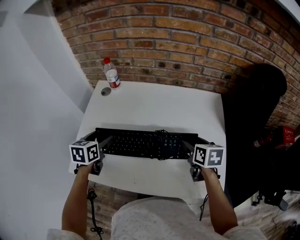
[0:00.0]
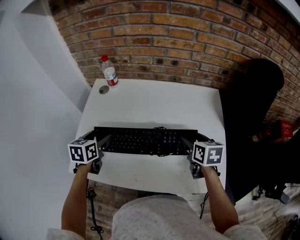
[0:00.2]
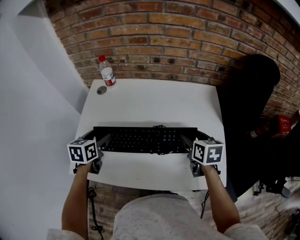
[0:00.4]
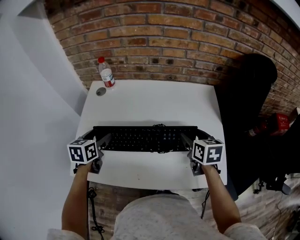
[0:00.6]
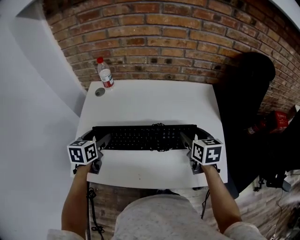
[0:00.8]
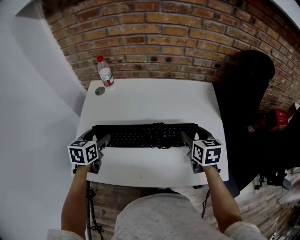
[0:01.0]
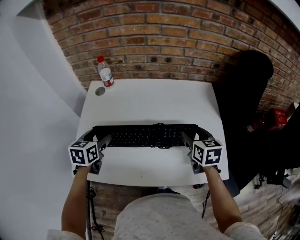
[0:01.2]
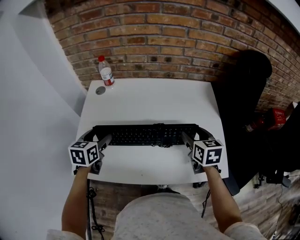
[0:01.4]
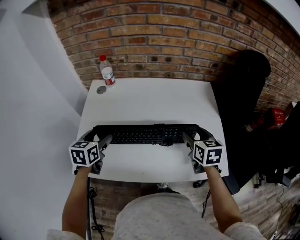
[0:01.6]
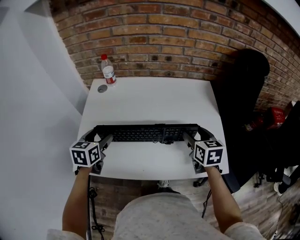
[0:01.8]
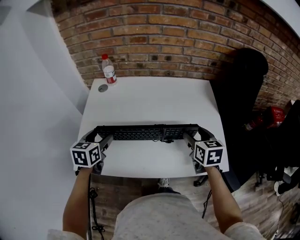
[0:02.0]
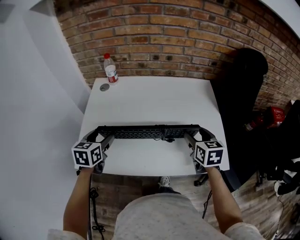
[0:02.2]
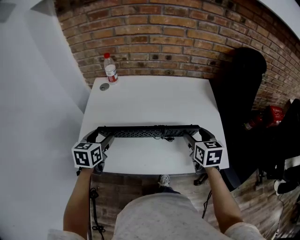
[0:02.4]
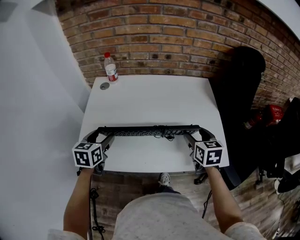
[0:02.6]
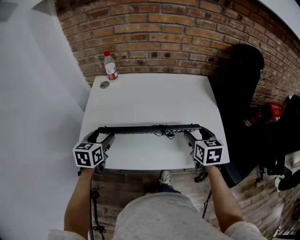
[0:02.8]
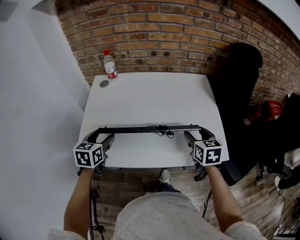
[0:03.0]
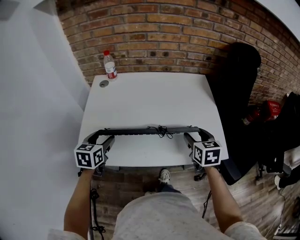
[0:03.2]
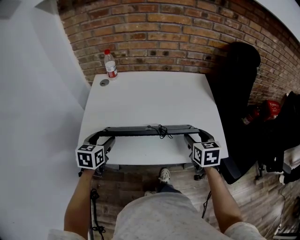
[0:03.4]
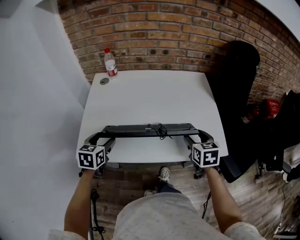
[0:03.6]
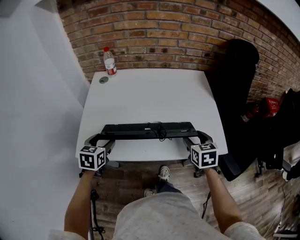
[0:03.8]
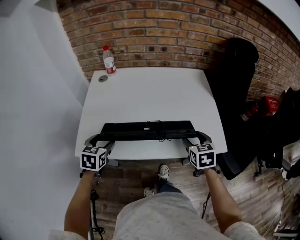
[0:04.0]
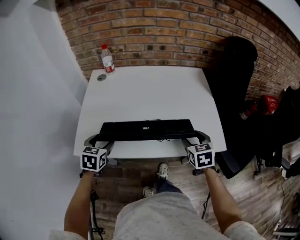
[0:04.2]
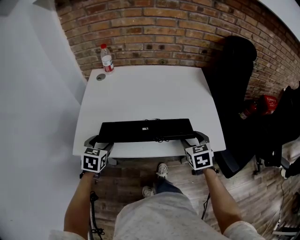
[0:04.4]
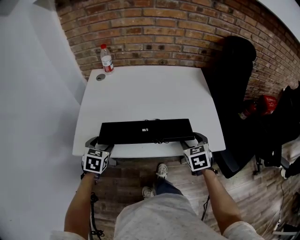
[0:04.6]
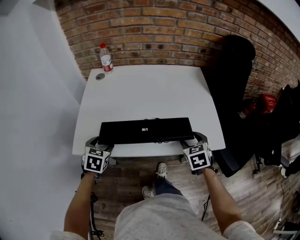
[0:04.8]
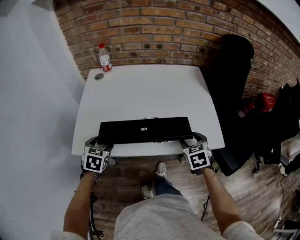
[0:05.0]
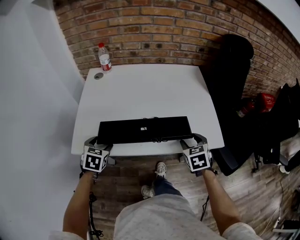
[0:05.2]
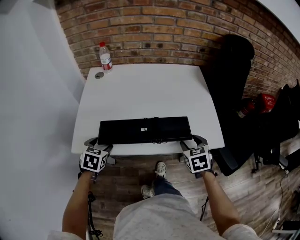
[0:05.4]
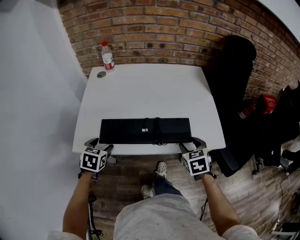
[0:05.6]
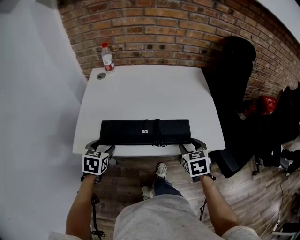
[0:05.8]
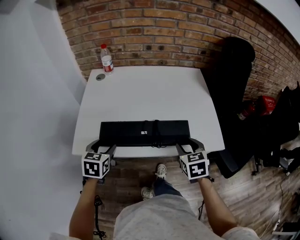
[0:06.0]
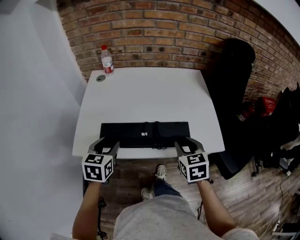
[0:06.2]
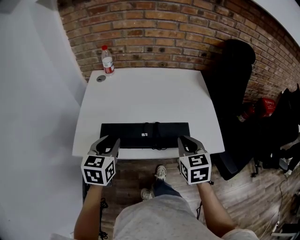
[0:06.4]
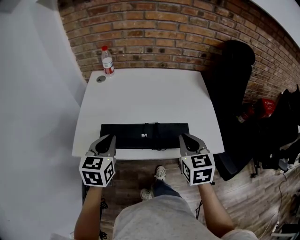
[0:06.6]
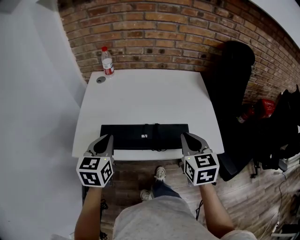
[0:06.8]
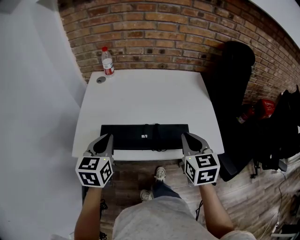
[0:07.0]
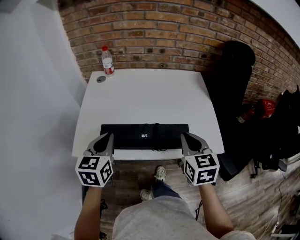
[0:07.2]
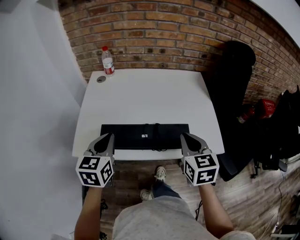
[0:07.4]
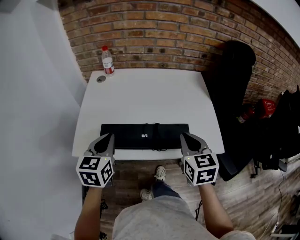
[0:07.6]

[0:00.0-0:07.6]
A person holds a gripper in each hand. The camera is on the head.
0:00.0 to 0:01.6: The right gripper shifts about 5 cm backward.
0:01.6 to 0:03.0: The grippers both shift backward by approximately 10 cm.
0:03.0 to 0:04.6: Both grippers move backward and downward, roughly 10 cm. The right gripper rotates some 20 degrees.
0:04.6 to 0:06.0: The right gripper moves roughly 5 cm.
0:06.0 to 0:07.6: The two grippers go roughly 10 cm upward. The left gripper closes its fingers. Meanwhile the right gripper closes up.

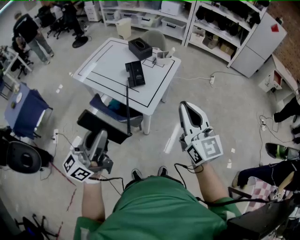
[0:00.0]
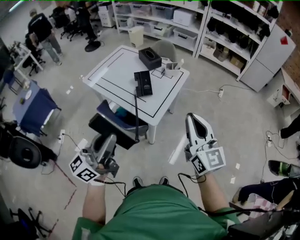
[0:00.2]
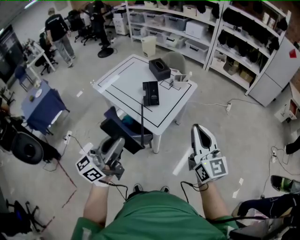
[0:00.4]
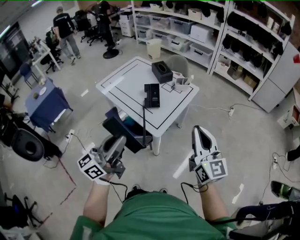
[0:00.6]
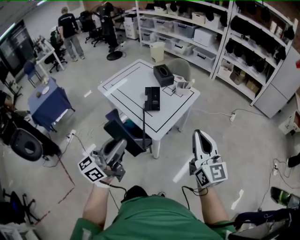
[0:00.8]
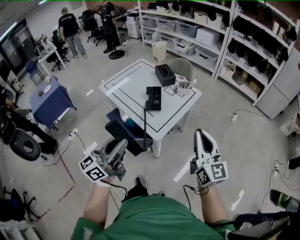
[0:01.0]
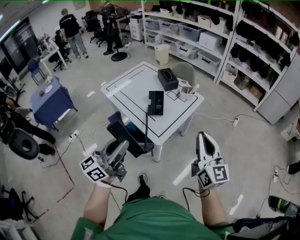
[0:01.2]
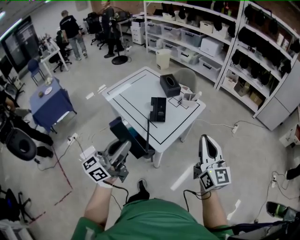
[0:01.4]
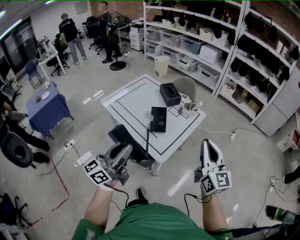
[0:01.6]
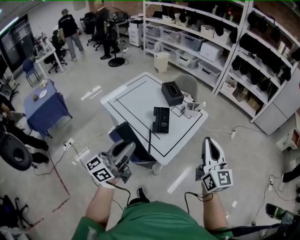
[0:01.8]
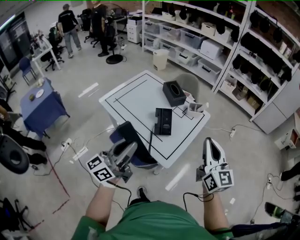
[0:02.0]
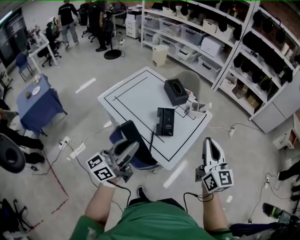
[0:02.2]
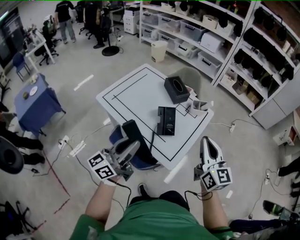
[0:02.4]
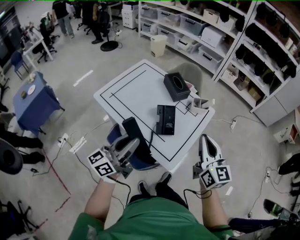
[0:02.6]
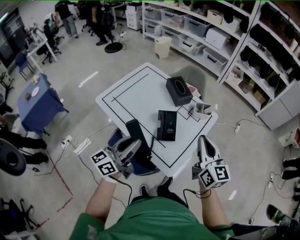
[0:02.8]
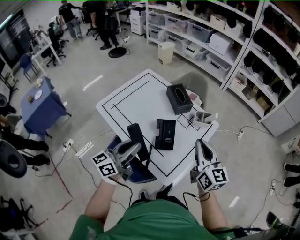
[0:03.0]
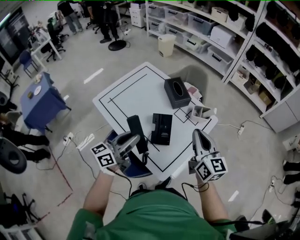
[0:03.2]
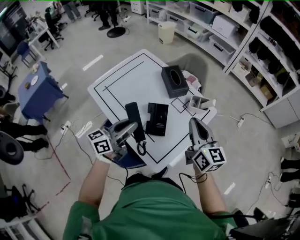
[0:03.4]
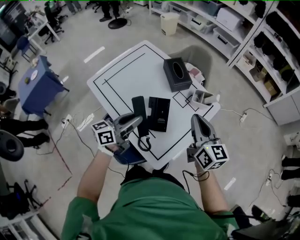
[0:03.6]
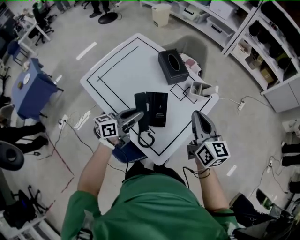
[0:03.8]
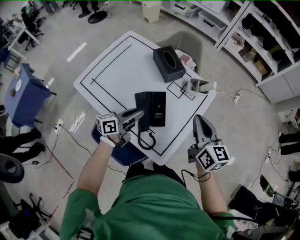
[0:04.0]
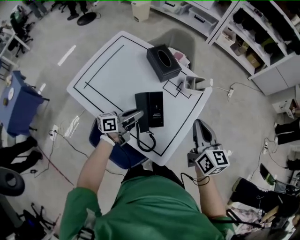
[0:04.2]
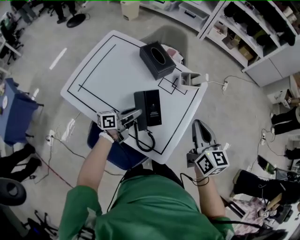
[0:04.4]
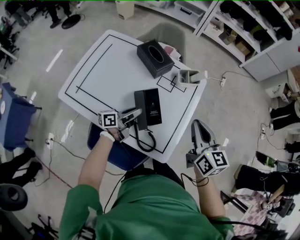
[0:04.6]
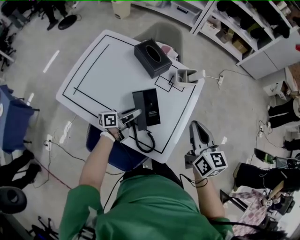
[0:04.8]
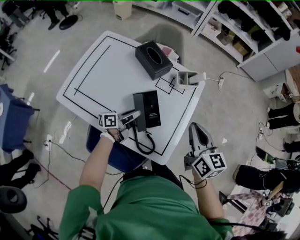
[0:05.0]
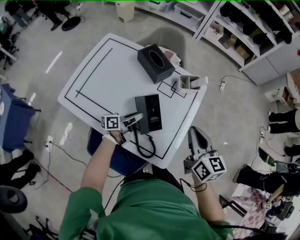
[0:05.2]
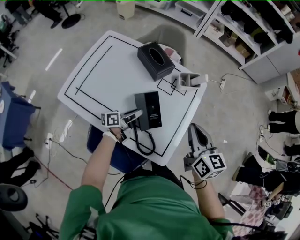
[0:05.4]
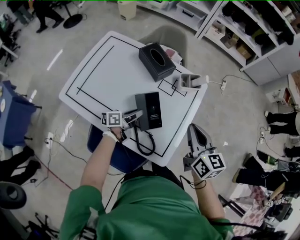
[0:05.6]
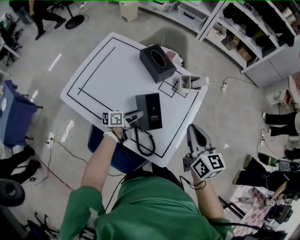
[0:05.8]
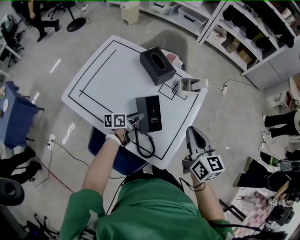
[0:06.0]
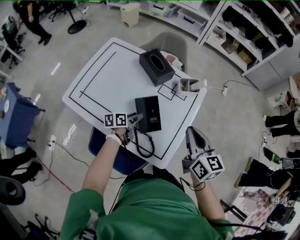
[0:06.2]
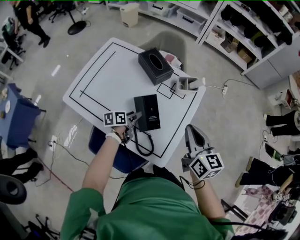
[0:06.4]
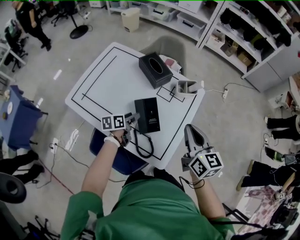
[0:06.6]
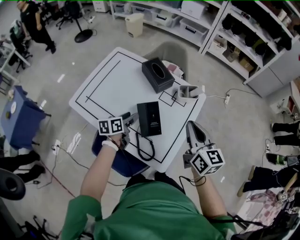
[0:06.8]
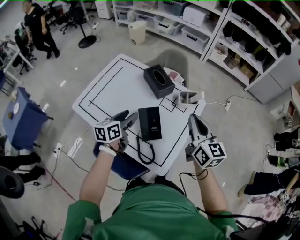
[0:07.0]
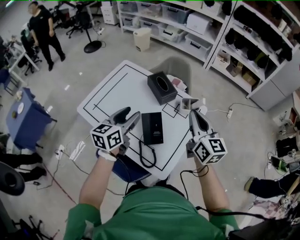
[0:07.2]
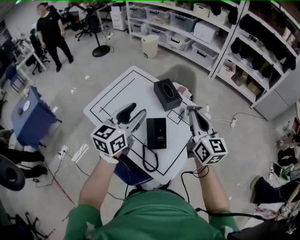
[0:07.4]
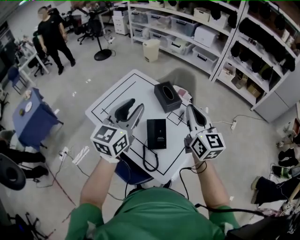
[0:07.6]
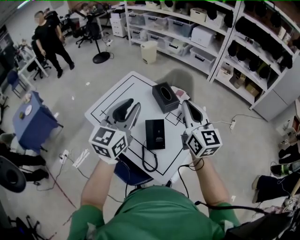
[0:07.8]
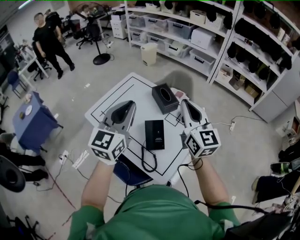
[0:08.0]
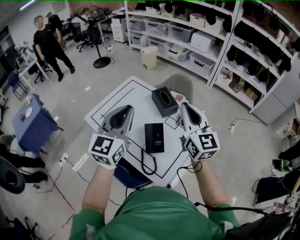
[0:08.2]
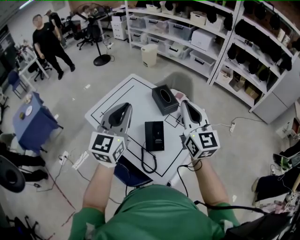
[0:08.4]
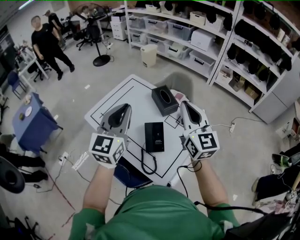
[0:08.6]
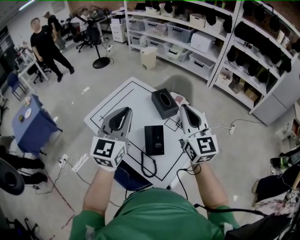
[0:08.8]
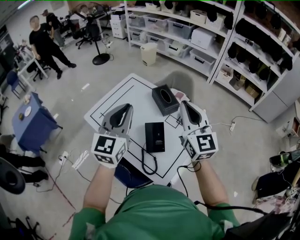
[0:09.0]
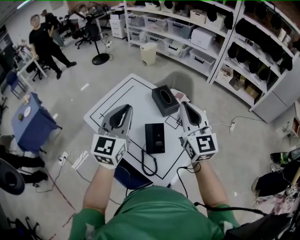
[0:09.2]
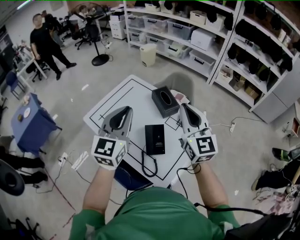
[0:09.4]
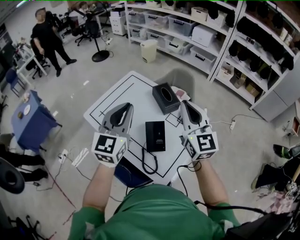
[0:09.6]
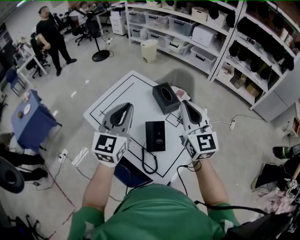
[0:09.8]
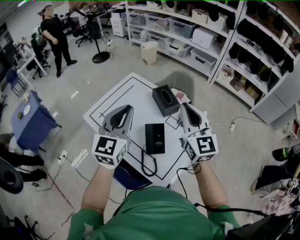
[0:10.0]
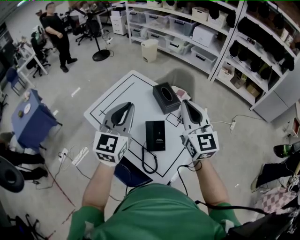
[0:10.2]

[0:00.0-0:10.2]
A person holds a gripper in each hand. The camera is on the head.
0:00.0 to 0:01.4: The grippers both shift forward and to the right by about 10 cm.
0:01.4 to 0:03.0: The left gripper is displaced forward by approximately 25 cm. Meanwhile the right gripper travels forward and to the left by some 30 cm.
0:03.0 to 0:04.4: The right gripper moves downward, some 10 cm. The left gripper heads downward and forward, covering roughly 25 cm, and rotates approximately 40 degrees.
0:04.4 to 0:05.8: The grippers move only a little.
0:05.8 to 0:07.2: The right gripper moves upward and forward, roughly 10 cm. Meanwhile the left gripper is displaced upward by approximately 25 cm, rotates approximately 50 degrees, and opens its fingers.
0:07.2 to 0:08.8: The right gripper shifts some 10 cm upward and to the left. Meanwhile the left gripper travels upward by about 15 cm, turns by about 40 degrees, and closes its fingers.
0:08.8 to 0:10.2: The grippers stay close to where they were, moving slightly.

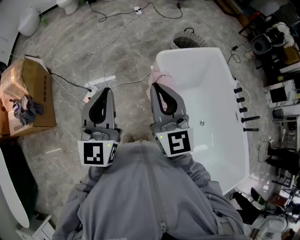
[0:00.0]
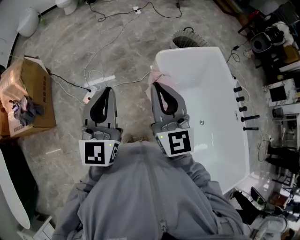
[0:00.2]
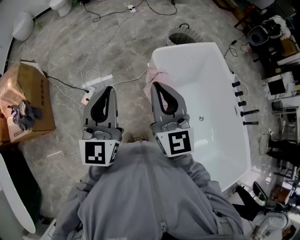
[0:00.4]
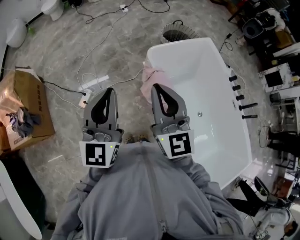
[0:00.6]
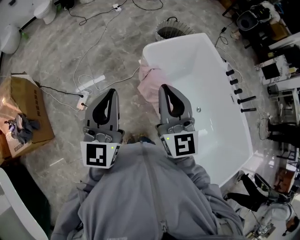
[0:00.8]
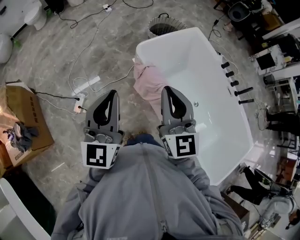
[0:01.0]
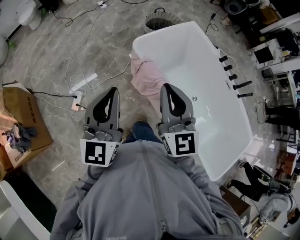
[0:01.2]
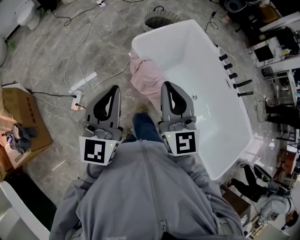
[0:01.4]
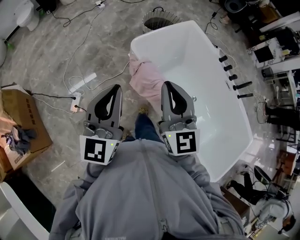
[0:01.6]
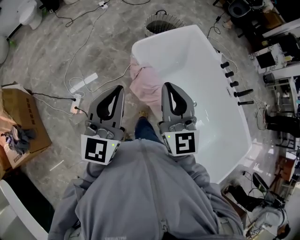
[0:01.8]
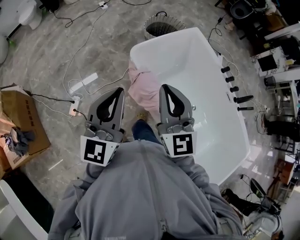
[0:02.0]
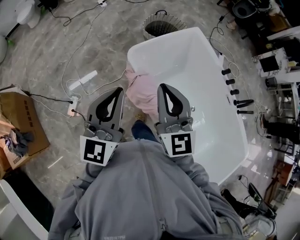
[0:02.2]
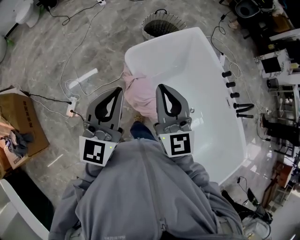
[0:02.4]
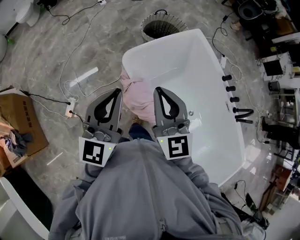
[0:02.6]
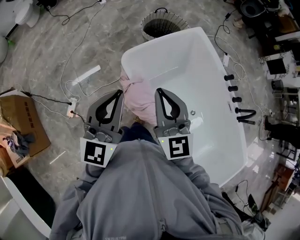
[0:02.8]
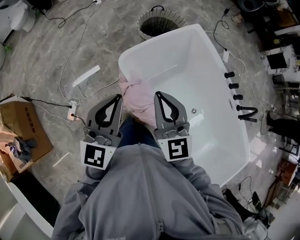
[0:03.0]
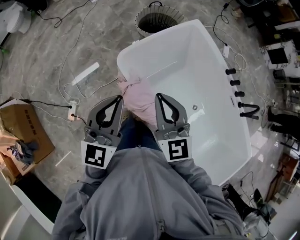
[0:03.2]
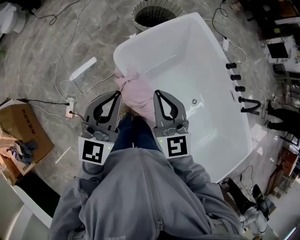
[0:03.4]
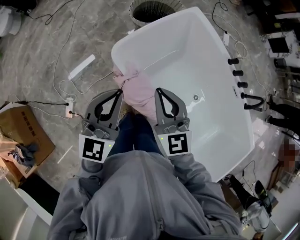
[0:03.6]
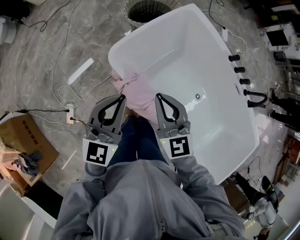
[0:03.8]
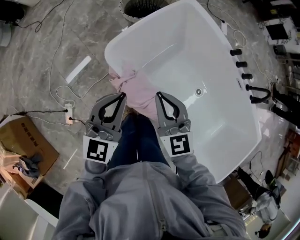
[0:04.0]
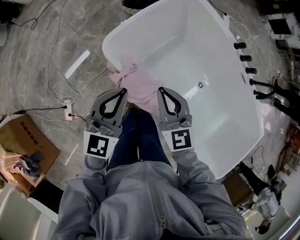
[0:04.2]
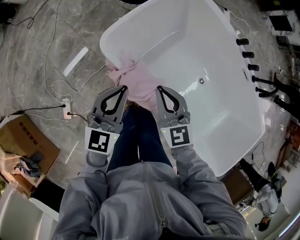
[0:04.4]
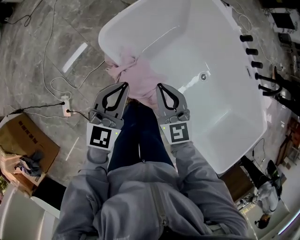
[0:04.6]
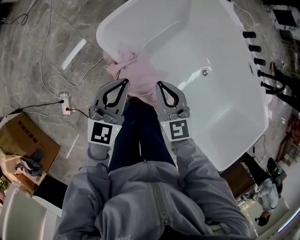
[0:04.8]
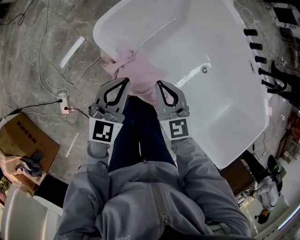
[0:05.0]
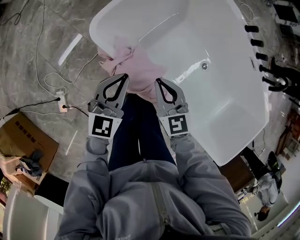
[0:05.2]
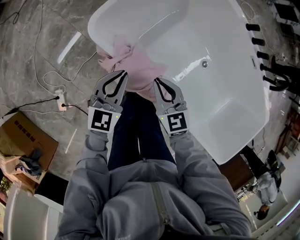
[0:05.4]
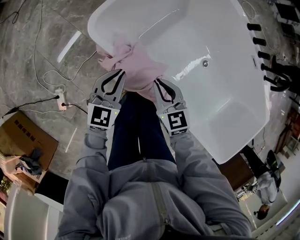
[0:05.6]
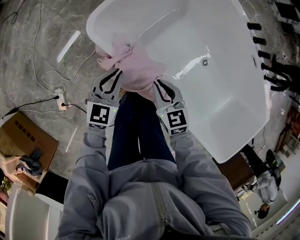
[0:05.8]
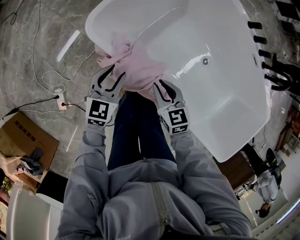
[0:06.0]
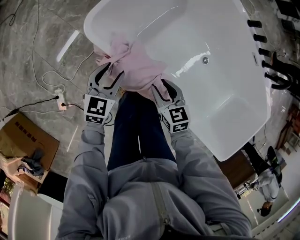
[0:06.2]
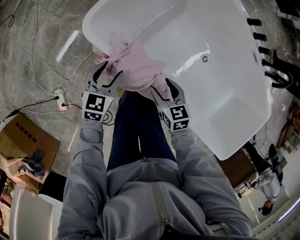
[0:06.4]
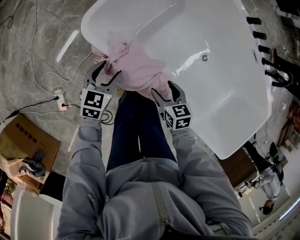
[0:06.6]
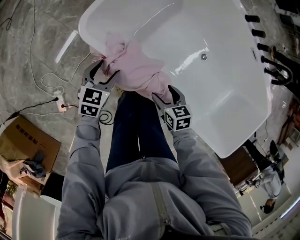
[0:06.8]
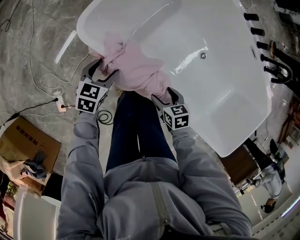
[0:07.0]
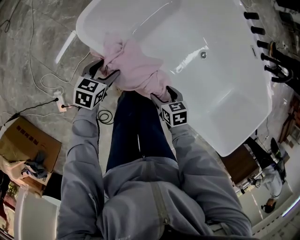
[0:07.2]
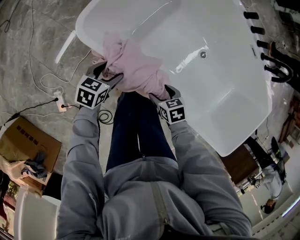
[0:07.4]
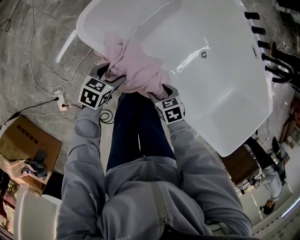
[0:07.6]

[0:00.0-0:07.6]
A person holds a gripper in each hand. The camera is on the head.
0:00.0 to 0:01.6: The two grippers go about 10 cm to the right. The left gripper turns by some 20 degrees. Meanwhile the right gripper rotates some 20 degrees.
0:01.6 to 0:03.0: The grippers both shift forward and to the right by approximately 25 cm.
0:03.0 to 0:04.6: Both grippers travel together downward, some 25 cm. The left gripper turns by about 30 degrees, while the right gripper swivels roughly 20 degrees.
0:04.6 to 0:06.0: Both grippers travel together downward, some 15 cm. The right gripper rotates approximately 20 degrees, while the left gripper opens.
0:06.0 to 0:07.6: Both grippers move downward, some 10 cm. The left gripper changes its angle by roughly 30 degrees, and opens up. Meanwhile the right gripper turns by approximately 30 degrees, and opens.
